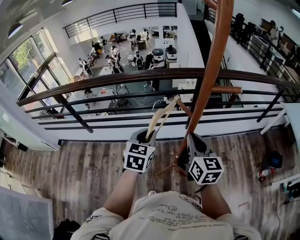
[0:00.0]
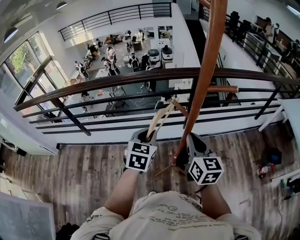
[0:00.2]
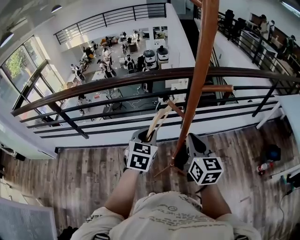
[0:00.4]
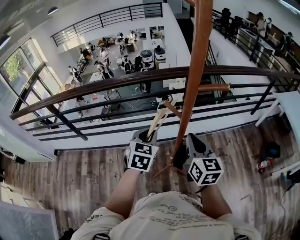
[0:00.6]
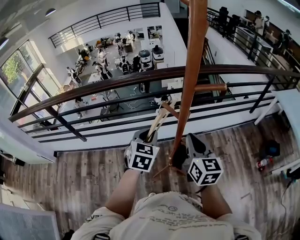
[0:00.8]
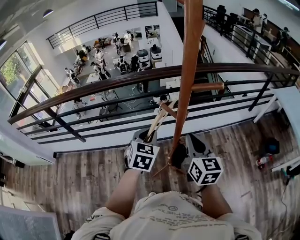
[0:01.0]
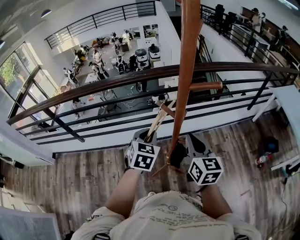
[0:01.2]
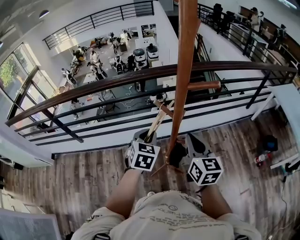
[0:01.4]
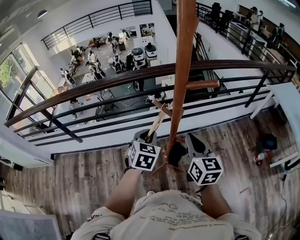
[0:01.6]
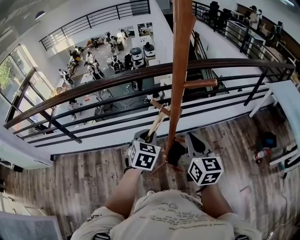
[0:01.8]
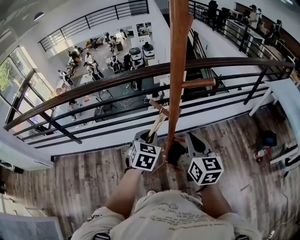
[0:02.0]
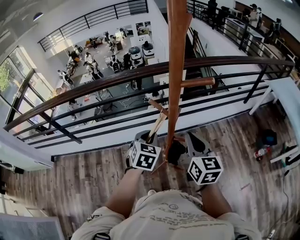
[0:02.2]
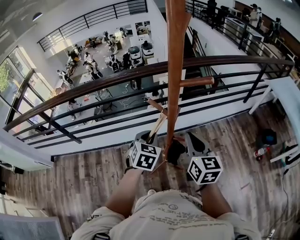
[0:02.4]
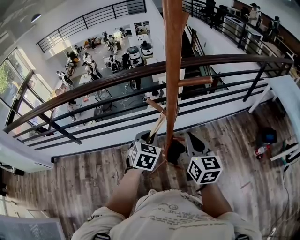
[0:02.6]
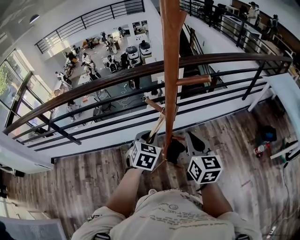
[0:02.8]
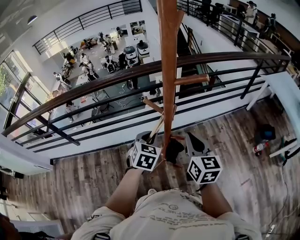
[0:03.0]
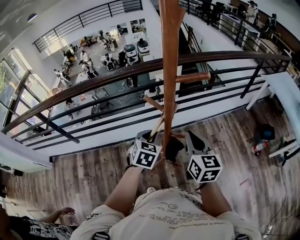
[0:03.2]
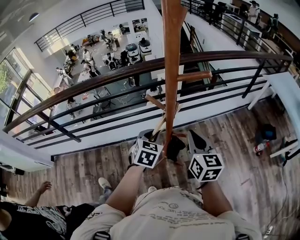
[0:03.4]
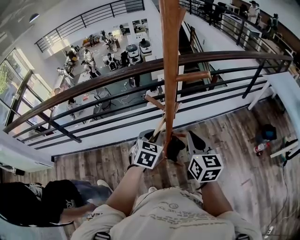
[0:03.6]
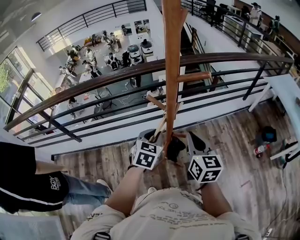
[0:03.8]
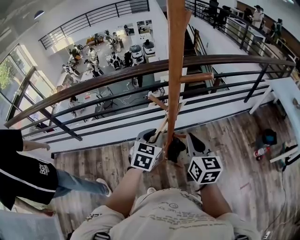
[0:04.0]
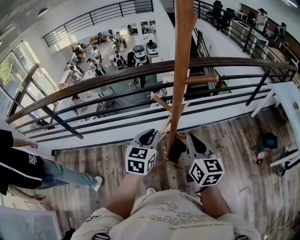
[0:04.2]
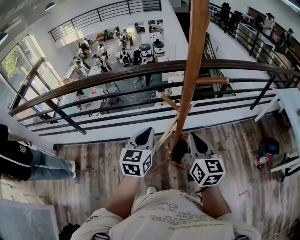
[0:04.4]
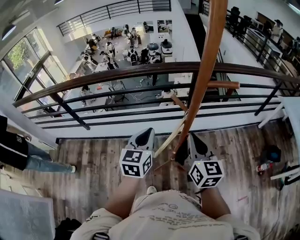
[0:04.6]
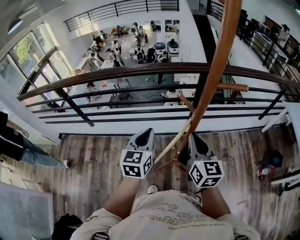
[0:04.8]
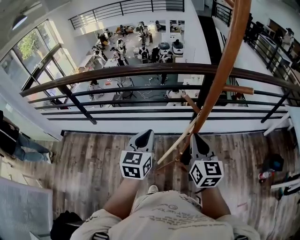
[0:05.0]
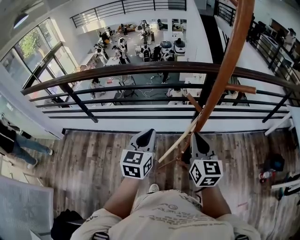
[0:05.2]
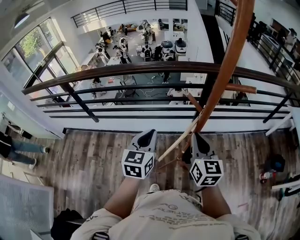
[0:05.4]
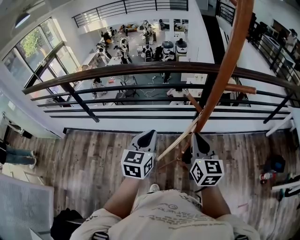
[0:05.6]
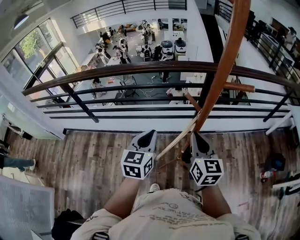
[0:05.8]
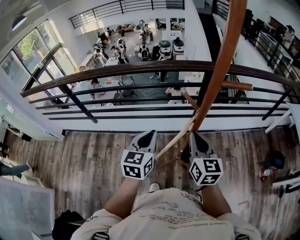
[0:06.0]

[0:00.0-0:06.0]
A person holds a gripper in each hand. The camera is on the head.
0:00.0 to 0:01.6: The grippers both shift to the right by approximately 5 cm.
0:01.6 to 0:03.0: The grippers stay close to where they were, moving slightly.
0:03.0 to 0:04.4: The left gripper shifts approximately 10 cm upward and to the left, and swivels some 30 degrees.
0:04.4 to 0:06.0: Both grippers move to the left, approximately 5 cm.

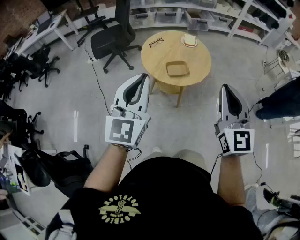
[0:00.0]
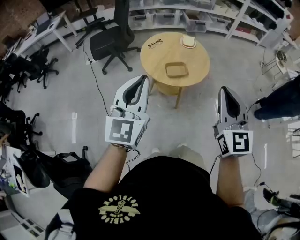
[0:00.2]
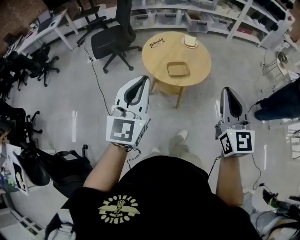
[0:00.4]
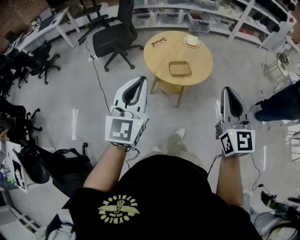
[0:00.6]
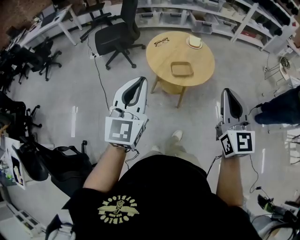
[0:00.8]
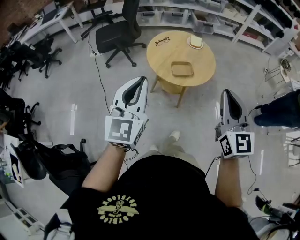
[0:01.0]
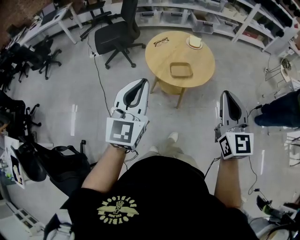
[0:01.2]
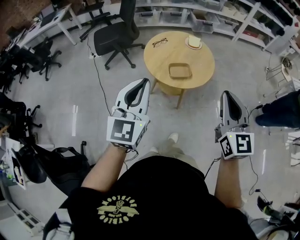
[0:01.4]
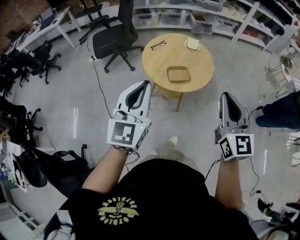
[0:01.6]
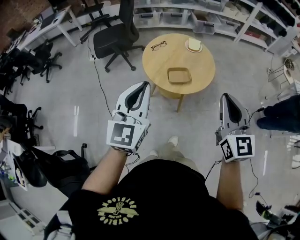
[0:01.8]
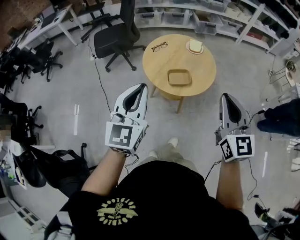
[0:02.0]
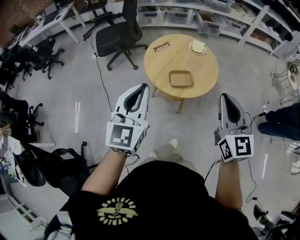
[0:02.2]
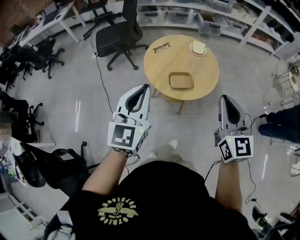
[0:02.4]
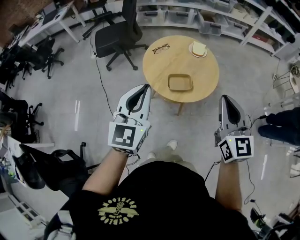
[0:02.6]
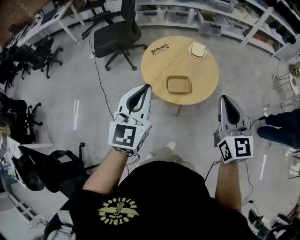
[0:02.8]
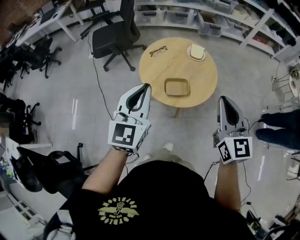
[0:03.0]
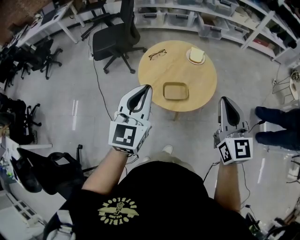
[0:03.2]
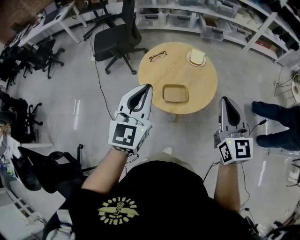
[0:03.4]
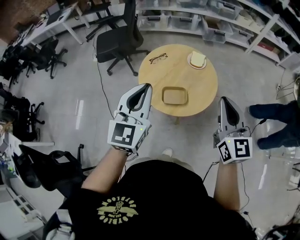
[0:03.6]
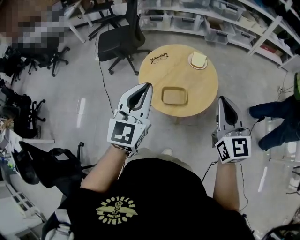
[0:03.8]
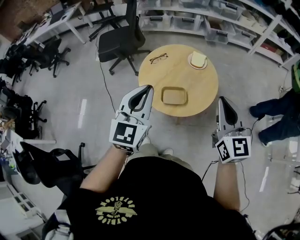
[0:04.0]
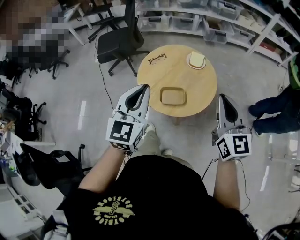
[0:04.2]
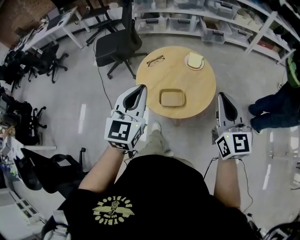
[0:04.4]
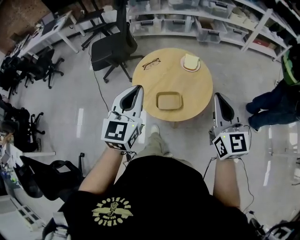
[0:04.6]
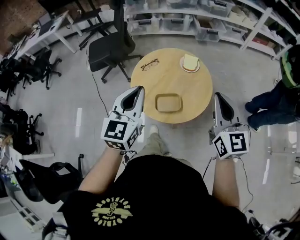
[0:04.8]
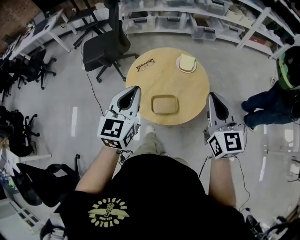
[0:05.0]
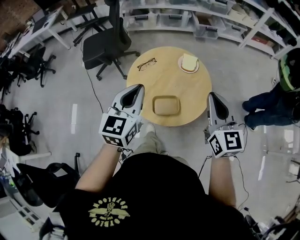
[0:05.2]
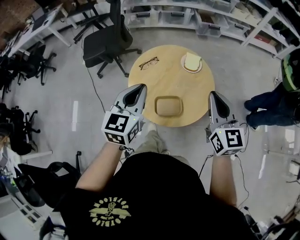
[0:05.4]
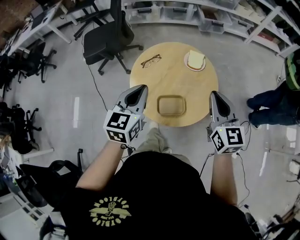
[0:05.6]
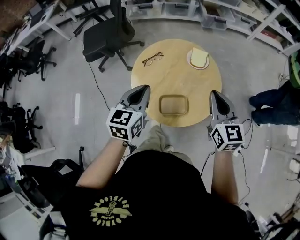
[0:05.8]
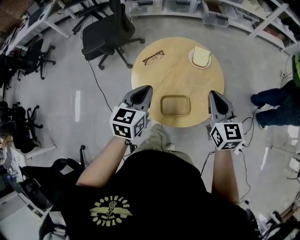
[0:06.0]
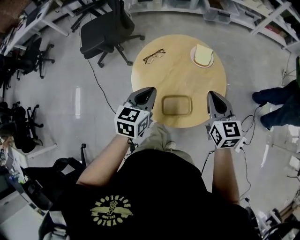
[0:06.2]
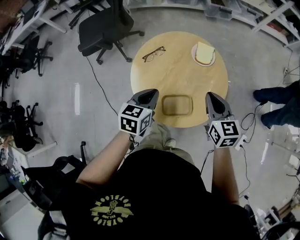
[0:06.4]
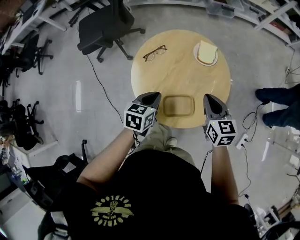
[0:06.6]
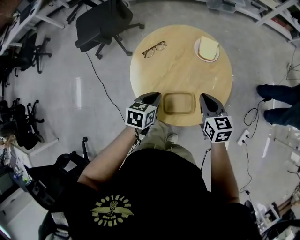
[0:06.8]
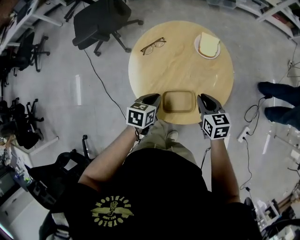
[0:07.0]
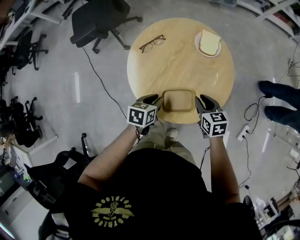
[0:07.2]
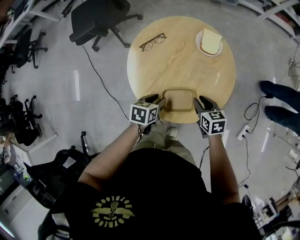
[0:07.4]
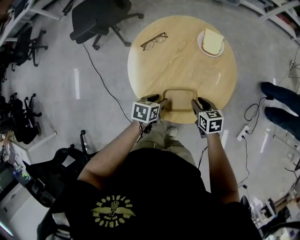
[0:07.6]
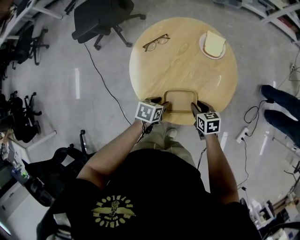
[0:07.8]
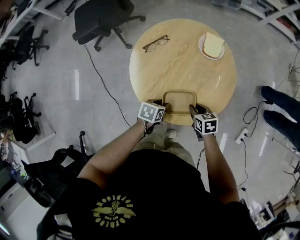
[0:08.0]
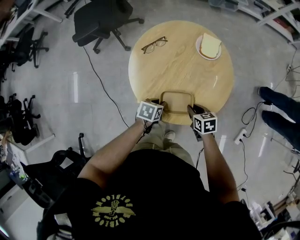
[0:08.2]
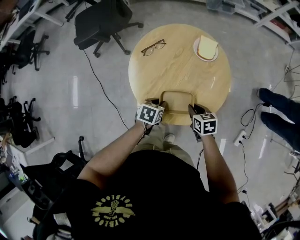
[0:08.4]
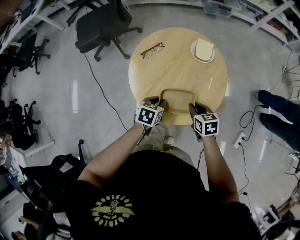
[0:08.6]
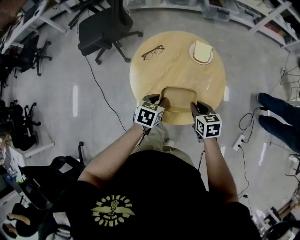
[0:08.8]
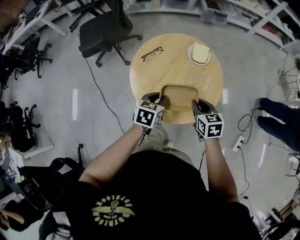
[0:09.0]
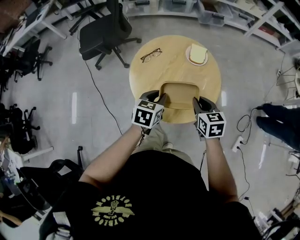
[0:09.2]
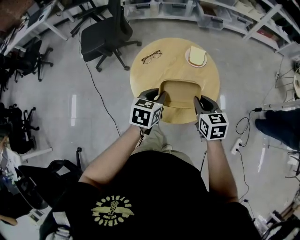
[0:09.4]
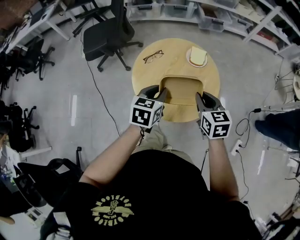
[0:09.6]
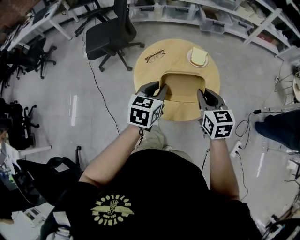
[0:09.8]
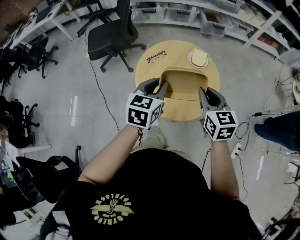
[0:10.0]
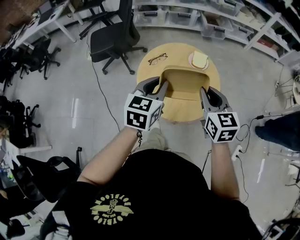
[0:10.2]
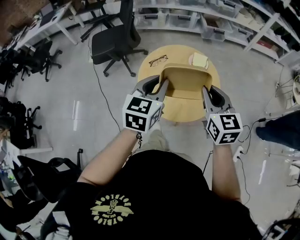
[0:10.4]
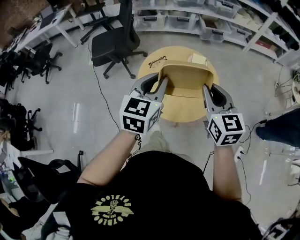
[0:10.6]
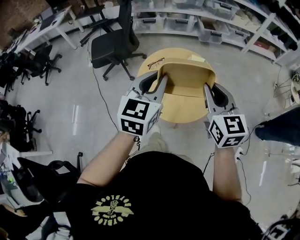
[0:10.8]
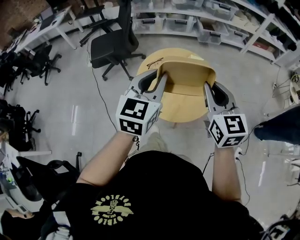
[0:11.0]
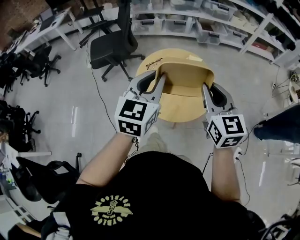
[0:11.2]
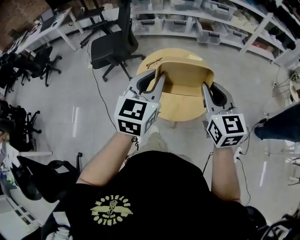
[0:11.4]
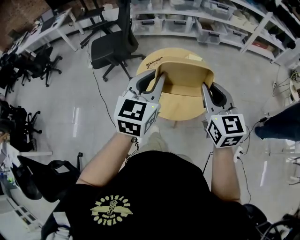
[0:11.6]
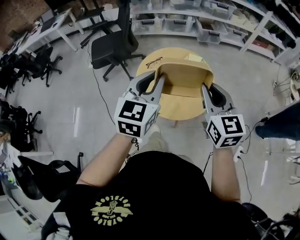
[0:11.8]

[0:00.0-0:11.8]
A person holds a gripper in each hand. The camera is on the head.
0:00.0 to 0:01.4: The grippers move only a little.
0:01.4 to 0:03.0: Both grippers travel together forward, some 15 cm.
0:03.0 to 0:04.4: The two grippers go roughly 10 cm forward and to the right.
0:04.4 to 0:06.0: Both grippers travel together forward and downward, some 25 cm. The left gripper rotates about 30 degrees.
0:06.0 to 0:07.4: Both grippers travel together downward, some 25 cm. The left gripper turns by roughly 40 degrees, and opens; the right gripper changes its angle by approximately 30 degrees, and opens up.
0:07.4 to 0:08.8: Both grippers travel together upward, approximately 10 cm.
0:08.8 to 0:10.4: The grippers both shift upward by some 25 cm. The left gripper changes its angle by some 30 degrees. Meanwhile the right gripper rotates roughly 30 degrees.
0:10.4 to 0:11.8: The grippers both shift upward by some 5 cm.

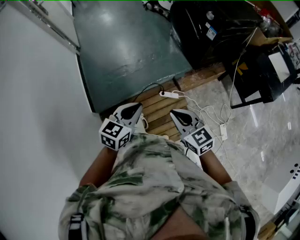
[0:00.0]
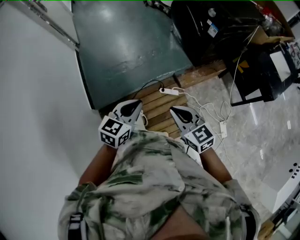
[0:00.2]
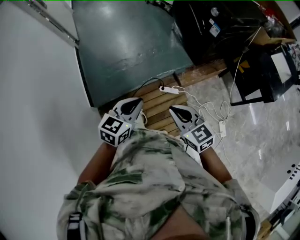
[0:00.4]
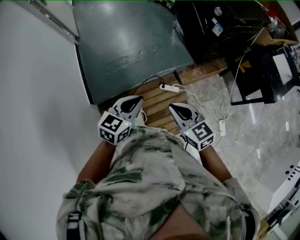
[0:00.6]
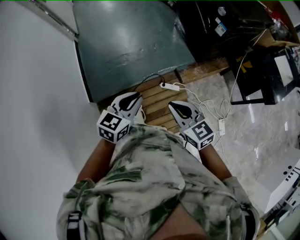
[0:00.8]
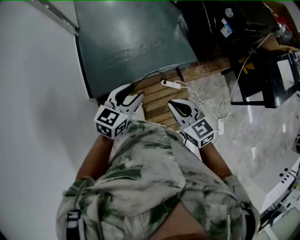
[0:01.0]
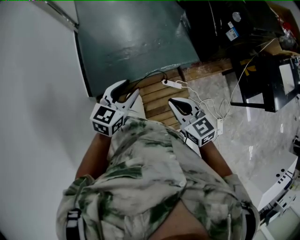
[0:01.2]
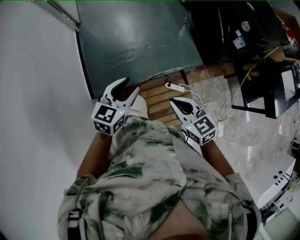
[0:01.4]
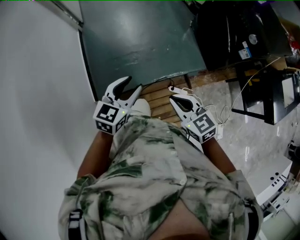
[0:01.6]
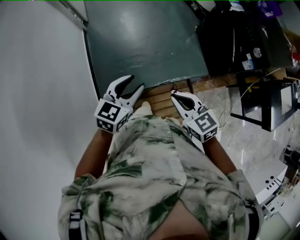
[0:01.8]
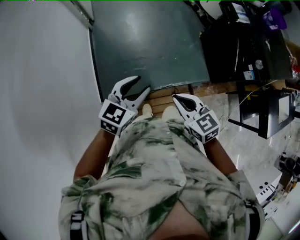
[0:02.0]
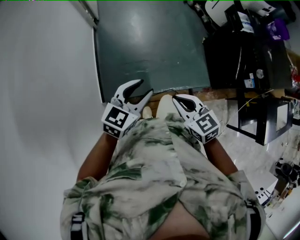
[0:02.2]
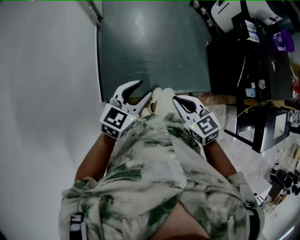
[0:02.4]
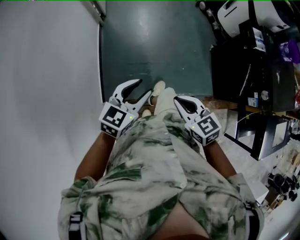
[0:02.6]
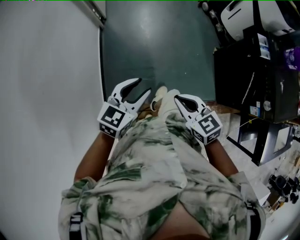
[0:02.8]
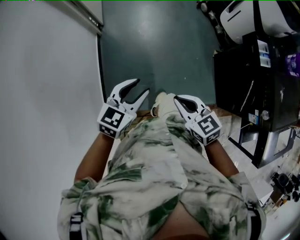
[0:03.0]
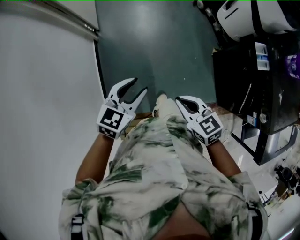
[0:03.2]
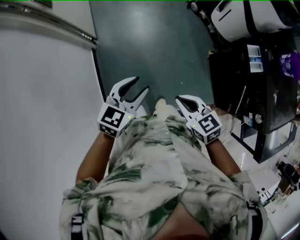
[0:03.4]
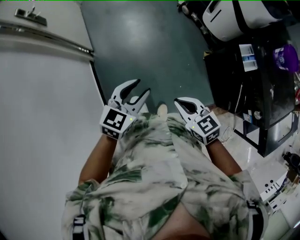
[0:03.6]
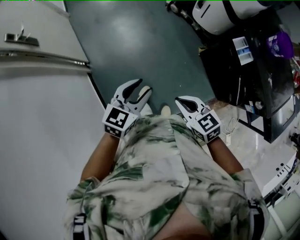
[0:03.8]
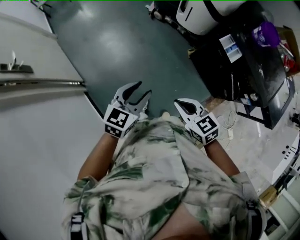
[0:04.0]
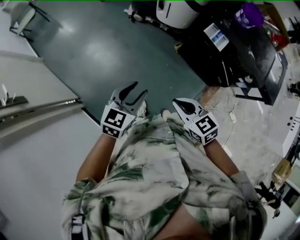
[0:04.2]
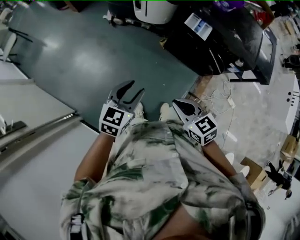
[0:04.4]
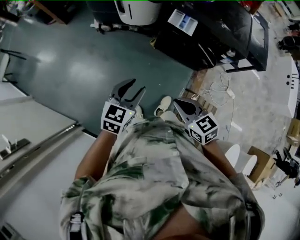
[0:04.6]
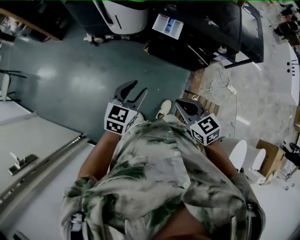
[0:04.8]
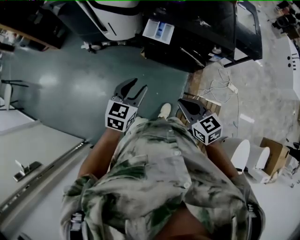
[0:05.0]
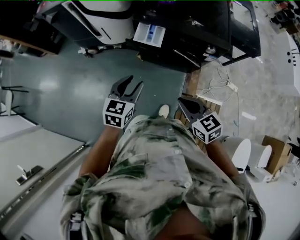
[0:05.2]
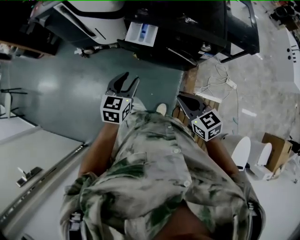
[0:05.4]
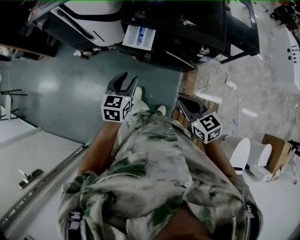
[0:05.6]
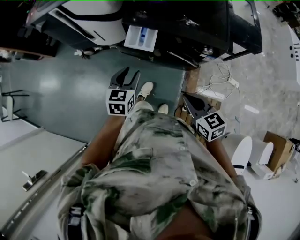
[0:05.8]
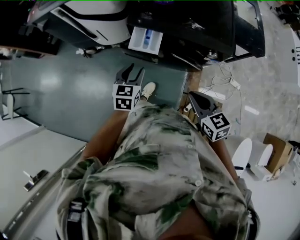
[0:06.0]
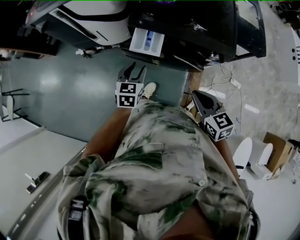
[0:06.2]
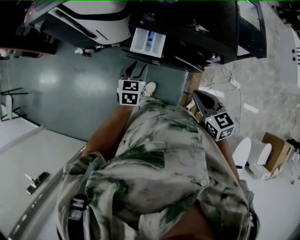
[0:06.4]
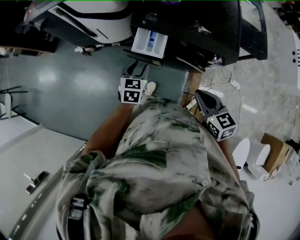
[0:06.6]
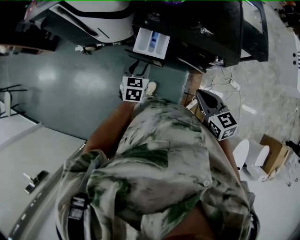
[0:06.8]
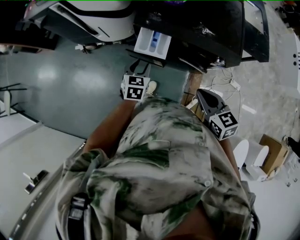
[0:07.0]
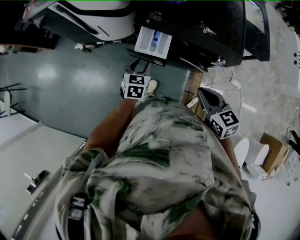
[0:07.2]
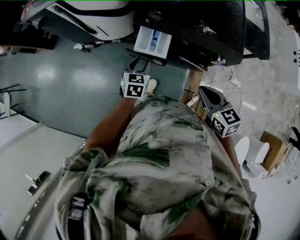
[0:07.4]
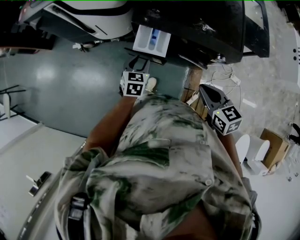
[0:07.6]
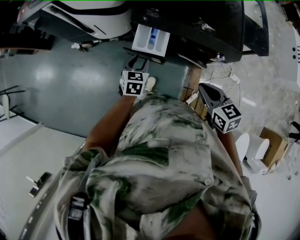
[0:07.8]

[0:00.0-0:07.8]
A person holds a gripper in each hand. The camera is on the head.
0:00.0 to 0:01.6: The grippers both shift forward and to the left by approximately 30 cm. The left gripper opens its fingers.
0:01.6 to 0:03.2: Both grippers are carried forward, some 50 cm.
0:03.2 to 0:04.6: The left gripper changes place by approximately 30 cm, and rotates some 50 degrees, while the right gripper moves approximately 20 cm, and changes its angle by approximately 60 degrees.
0:04.6 to 0:06.2: The right gripper shifts about 35 cm to the right and forward, and rotates approximately 20 degrees, while the left gripper moves forward and to the right, approximately 35 cm.
0:06.2 to 0:07.8: The left gripper travels downward and forward by roughly 10 cm. The right gripper moves forward, roughly 5 cm.
